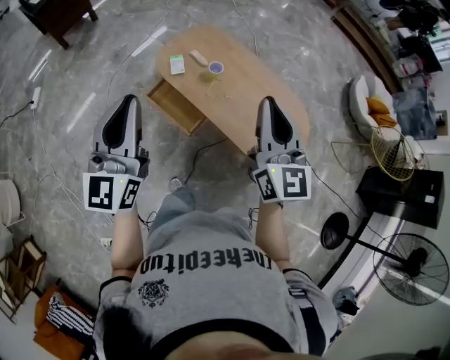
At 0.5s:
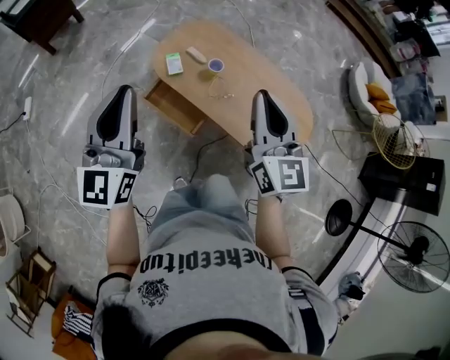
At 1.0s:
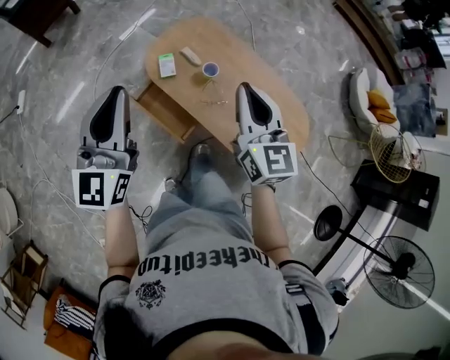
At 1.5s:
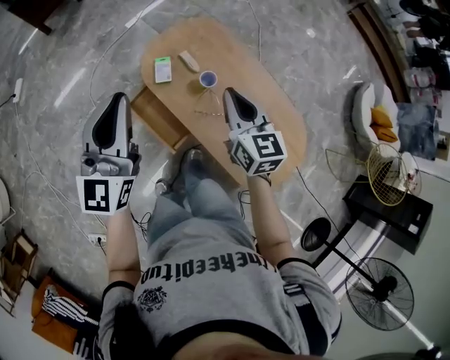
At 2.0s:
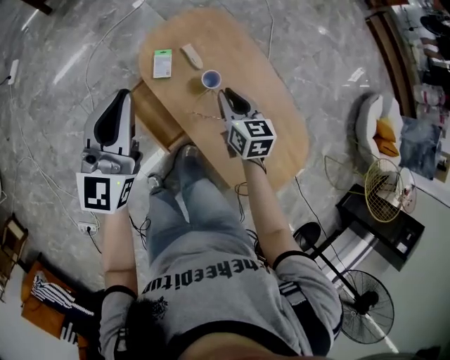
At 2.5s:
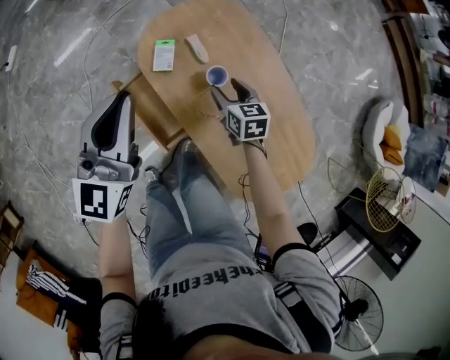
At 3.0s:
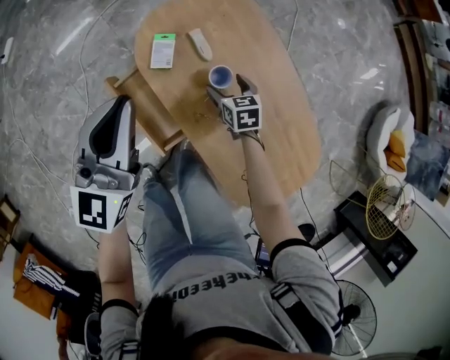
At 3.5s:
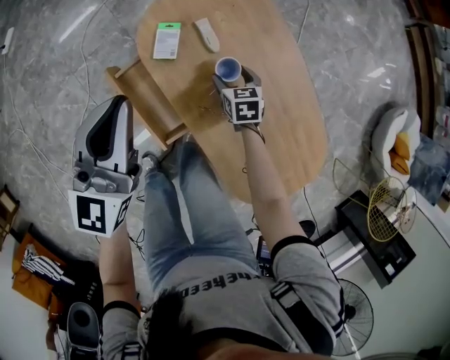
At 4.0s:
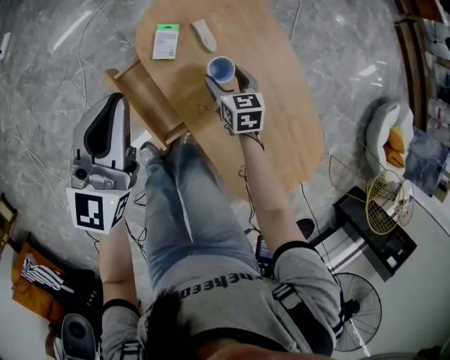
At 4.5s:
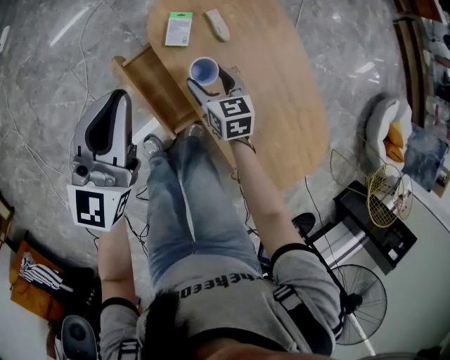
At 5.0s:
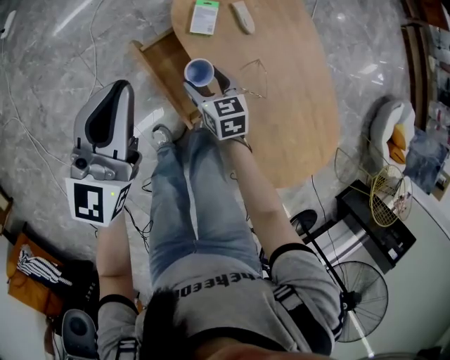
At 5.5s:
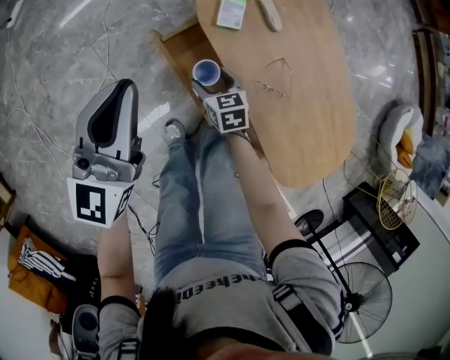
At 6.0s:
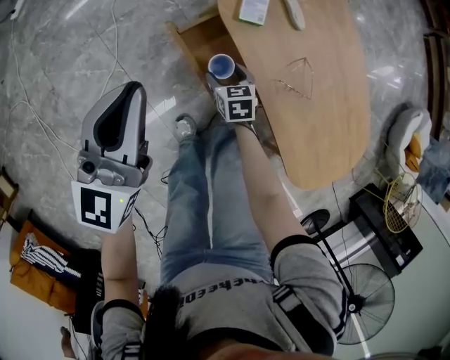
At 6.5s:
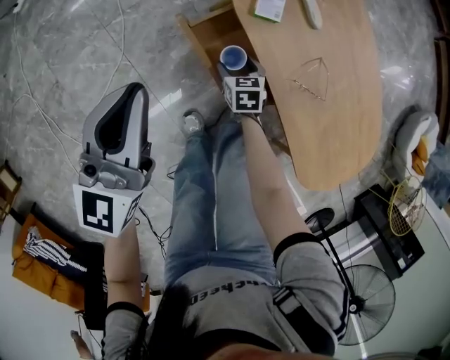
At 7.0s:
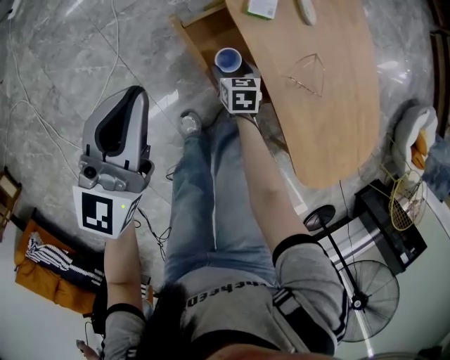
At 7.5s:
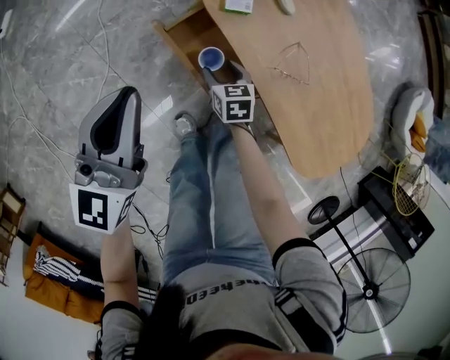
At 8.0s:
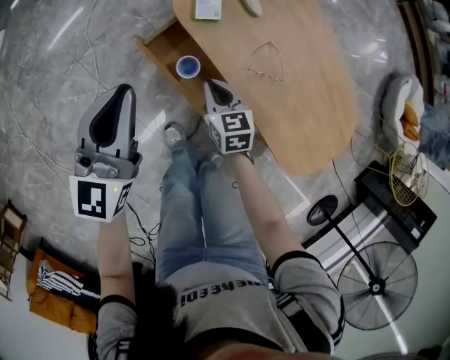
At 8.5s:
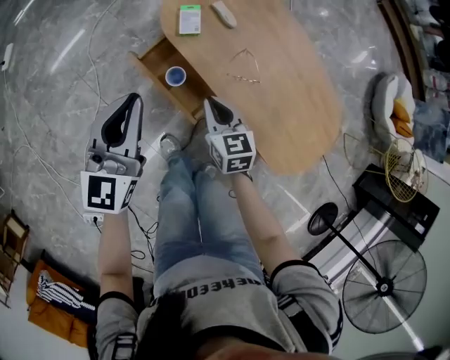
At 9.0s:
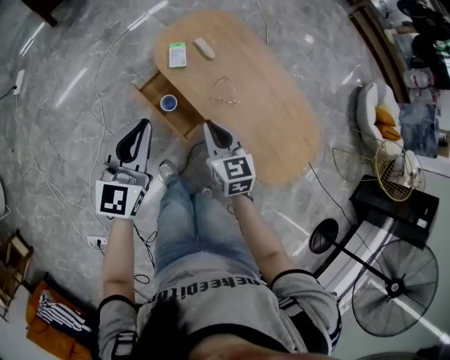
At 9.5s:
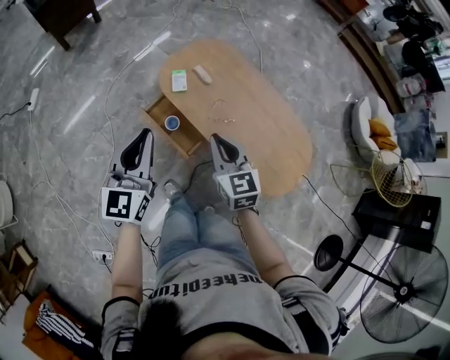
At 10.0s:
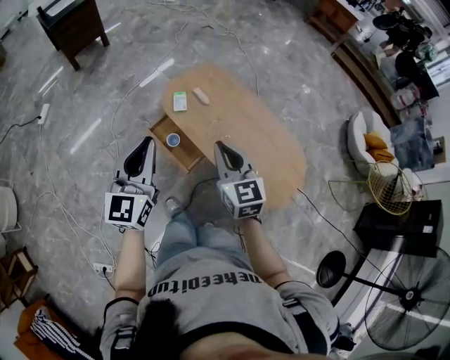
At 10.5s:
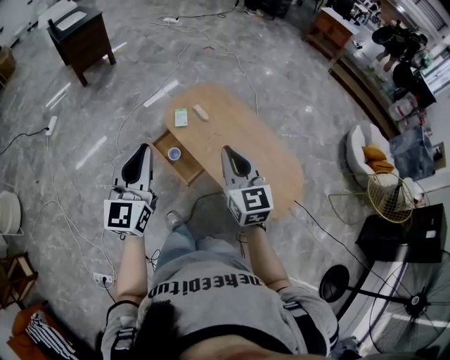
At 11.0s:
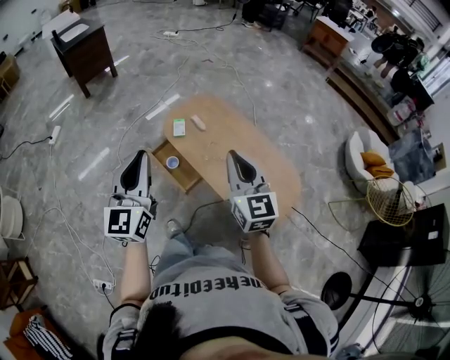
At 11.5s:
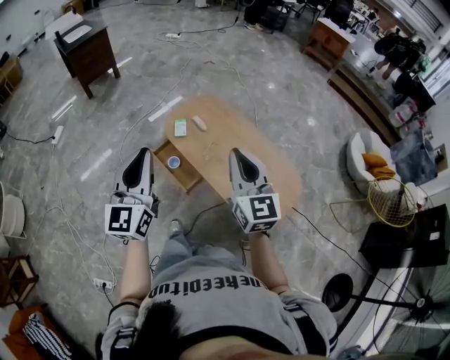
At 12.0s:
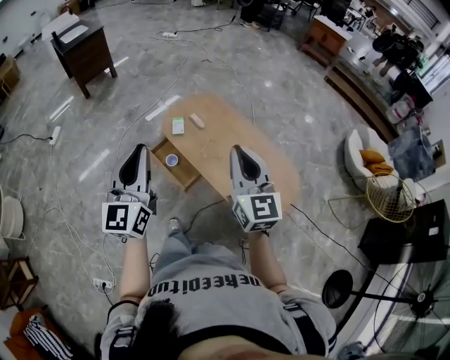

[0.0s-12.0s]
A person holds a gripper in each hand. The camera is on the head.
0.0s to 2.0s: The left gripper travels forward and downward by some 30 cm, while the right gripper goes some 50 cm downward and forward, and tips its fingers downward by some 40 degrees.
2.0s to 4.0s: The left gripper is displaced downward by some 10 cm; the right gripper moves downward, roughly 20 cm, and opens.
4.0s to 6.0s: The grippers both shift to the left and downward by roughly 25 cm.
6.0s to 8.0s: The left gripper ends up roughly 5 cm from where it was, while the right gripper moves upward, about 10 cm, and closes up.
8.0s to 10.0s: The right gripper is displaced upward by about 40 cm, and swivels some 30 degrees; the left gripper heads upward and backward, covering some 30 cm.
10.0s to 12.0s: The left gripper goes roughly 10 cm upward and backward. The right gripper moves upward, backward and to the right, roughly 15 cm.

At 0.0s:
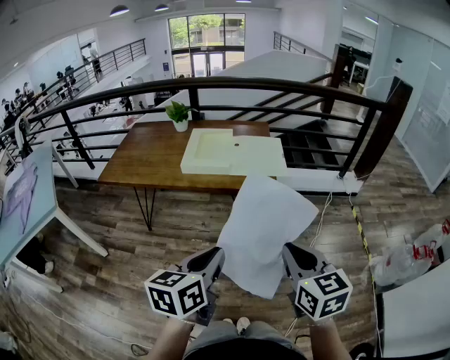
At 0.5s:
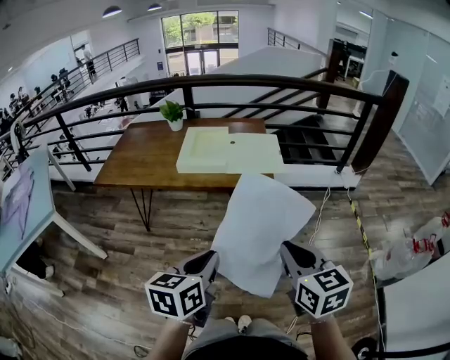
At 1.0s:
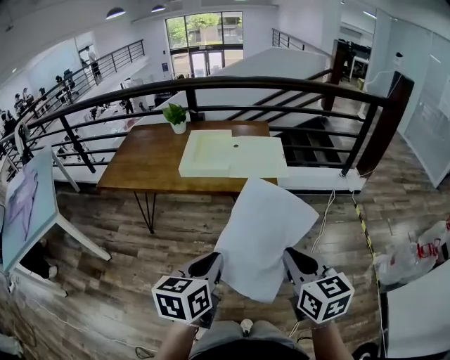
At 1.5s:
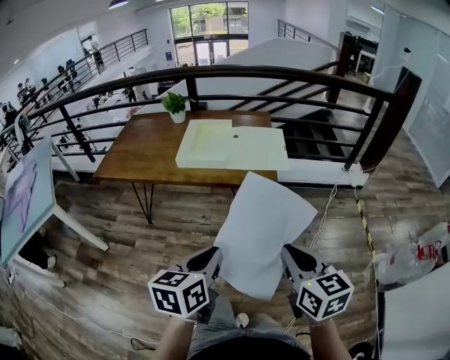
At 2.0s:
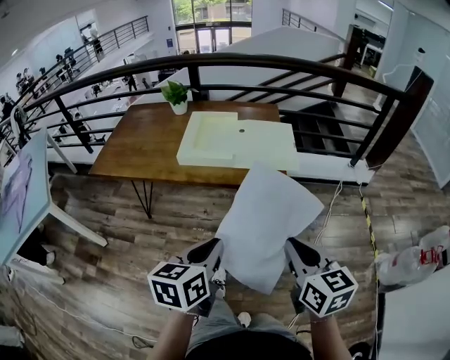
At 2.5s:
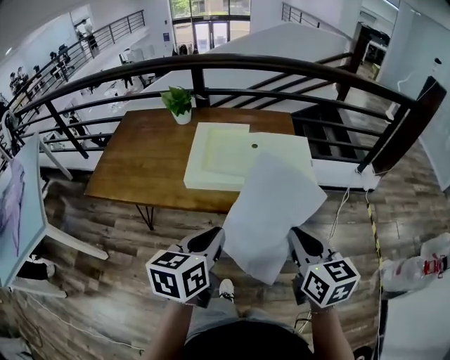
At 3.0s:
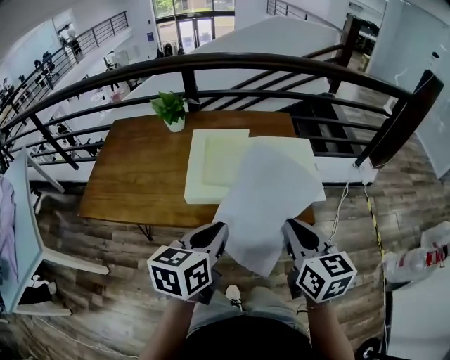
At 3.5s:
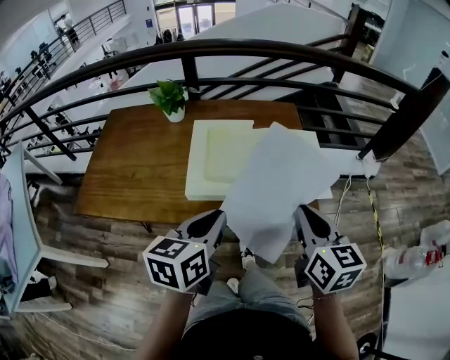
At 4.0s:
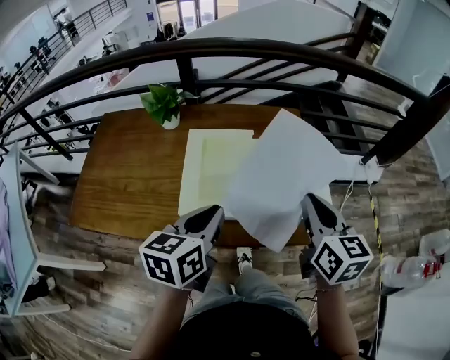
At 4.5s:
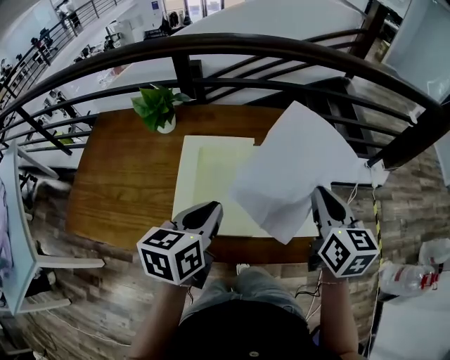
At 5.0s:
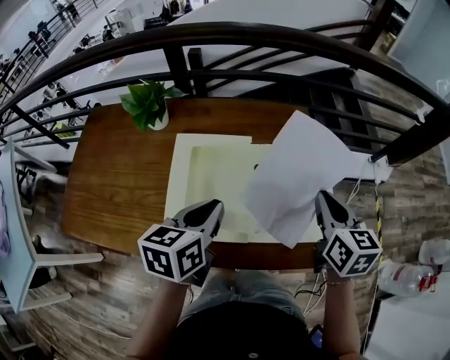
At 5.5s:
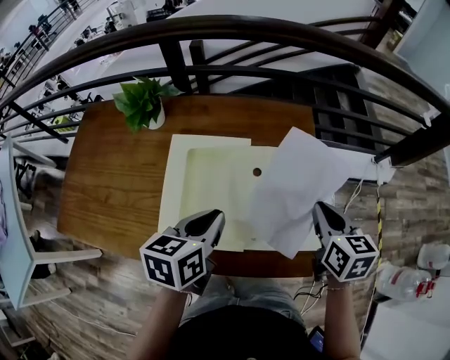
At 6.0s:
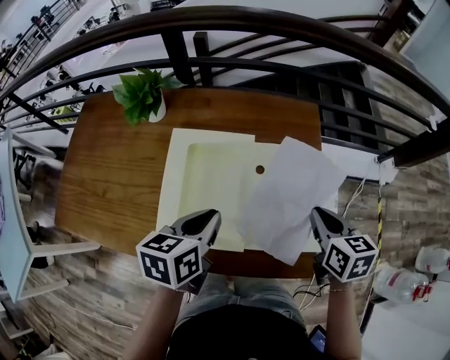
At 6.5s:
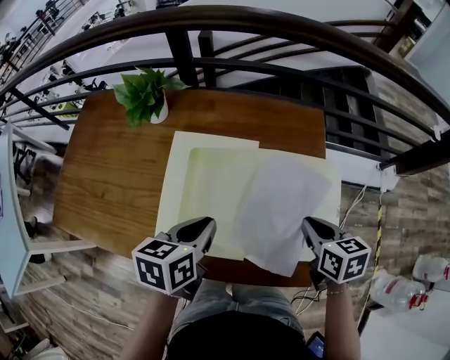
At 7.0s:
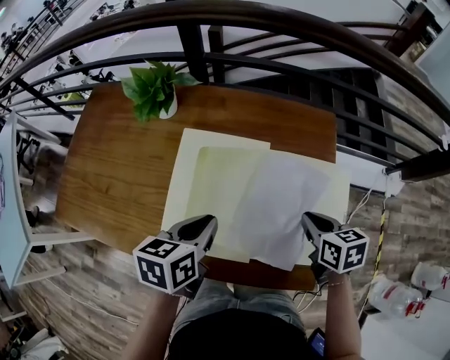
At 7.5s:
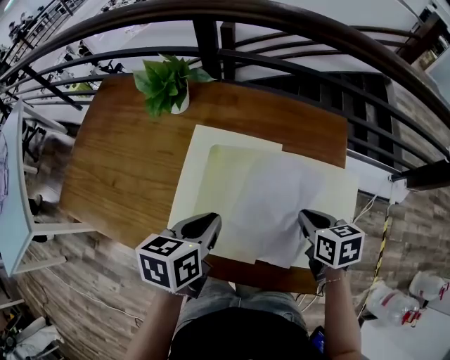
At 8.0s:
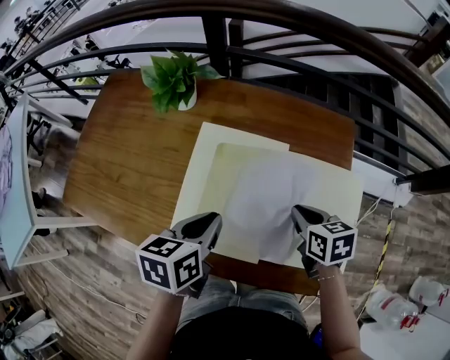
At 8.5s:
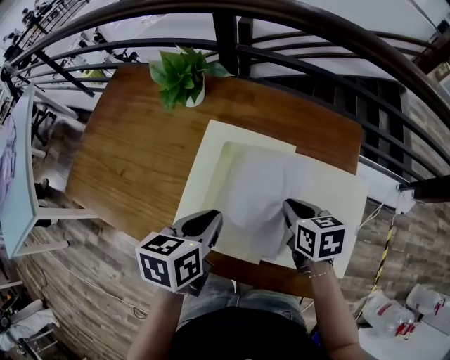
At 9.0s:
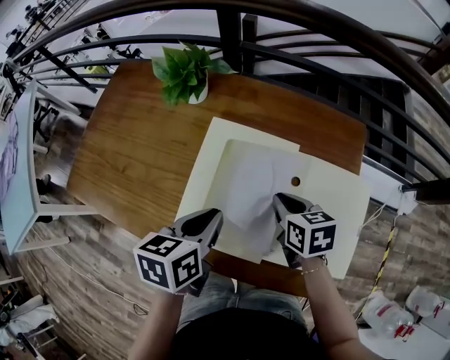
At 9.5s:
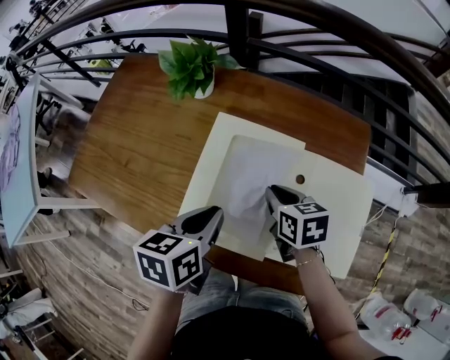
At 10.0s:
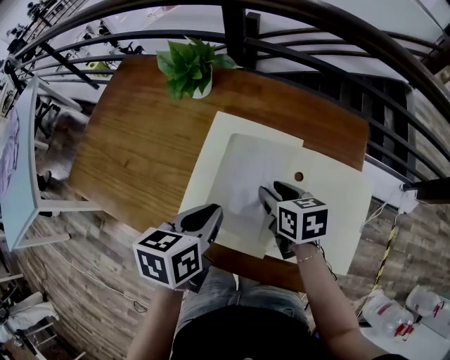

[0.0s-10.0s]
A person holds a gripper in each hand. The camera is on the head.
0.0s to 2.0s: The left gripper goes about 10 cm forward and downward. Meanwhile the right gripper travels forward by approximately 10 cm.
2.0s to 4.0s: The grippers both shift forward by some 35 cm.
4.0s to 6.0s: Both grippers move forward and downward, about 15 cm. The right gripper rotates about 30 degrees.
6.0s to 8.0s: The right gripper shifts some 10 cm to the left and downward.
8.0s to 10.0s: The right gripper is displaced to the left by approximately 10 cm, and opens up.

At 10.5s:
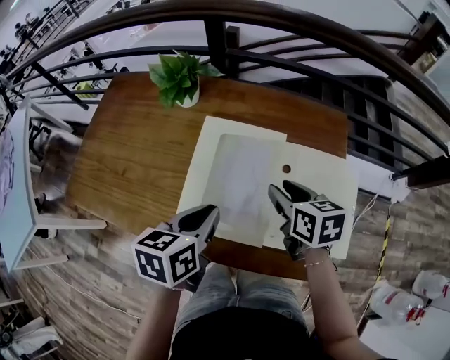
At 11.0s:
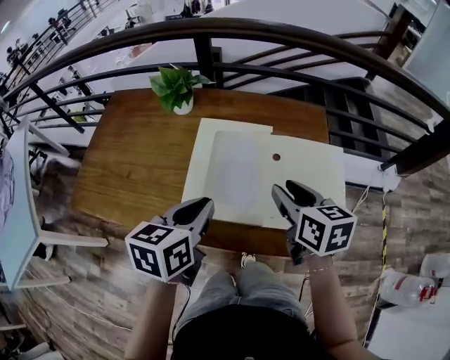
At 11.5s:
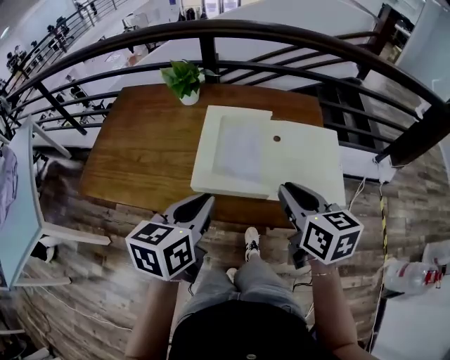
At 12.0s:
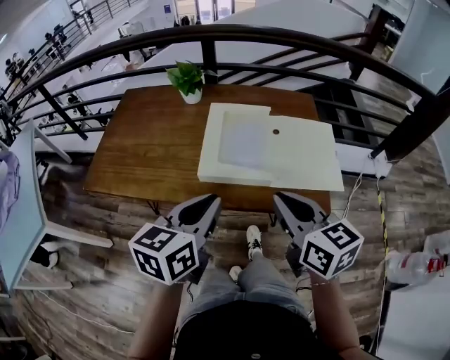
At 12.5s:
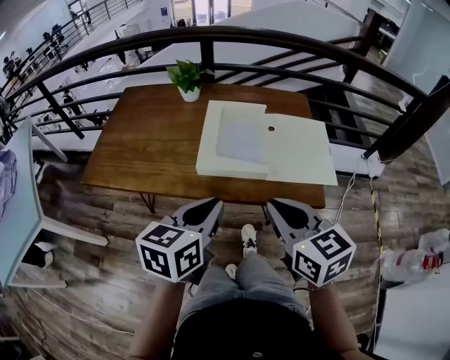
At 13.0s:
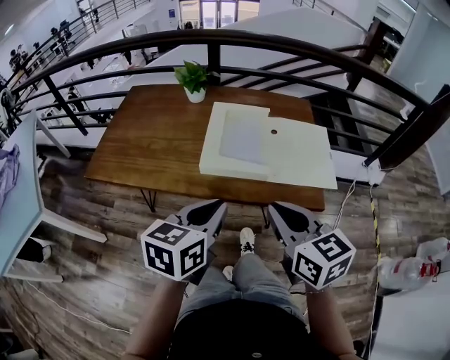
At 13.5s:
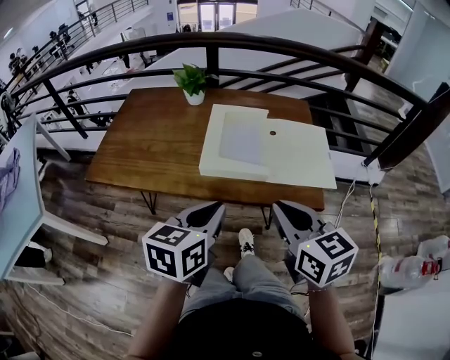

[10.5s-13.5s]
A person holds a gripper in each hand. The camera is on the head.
10.5s to 12.0s: The two grippers go about 25 cm backward and upward. The left gripper changes its angle by some 20 degrees, while the right gripper rotates roughly 20 degrees, and closes its fingers.
12.0s to 13.5s: The two grippers go some 5 cm backward.

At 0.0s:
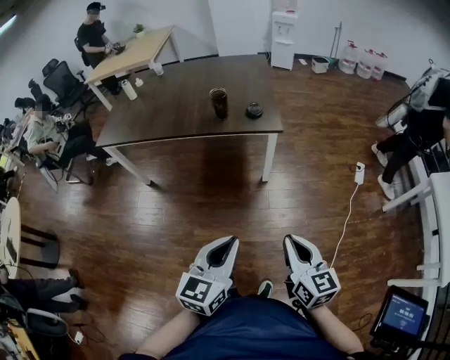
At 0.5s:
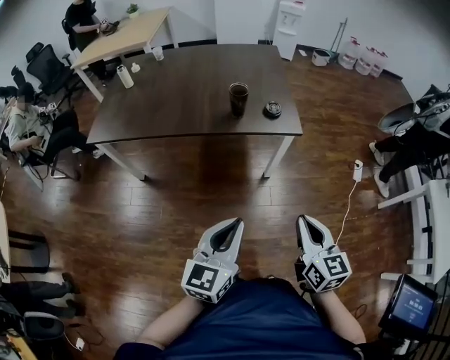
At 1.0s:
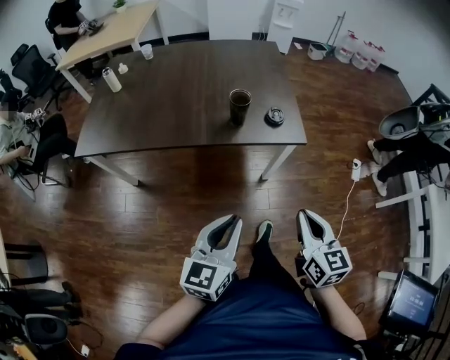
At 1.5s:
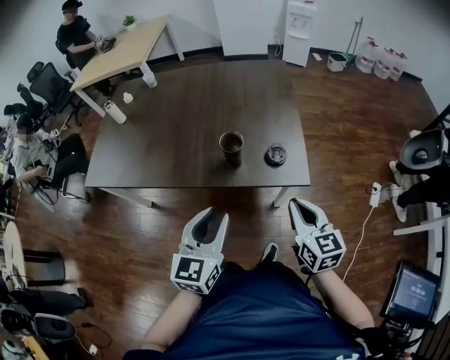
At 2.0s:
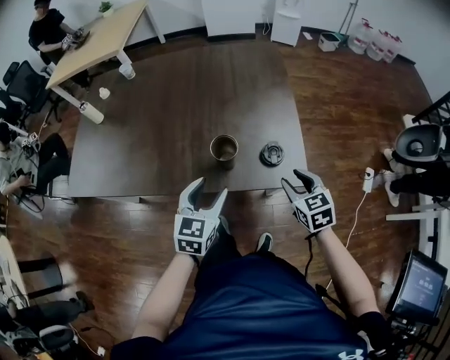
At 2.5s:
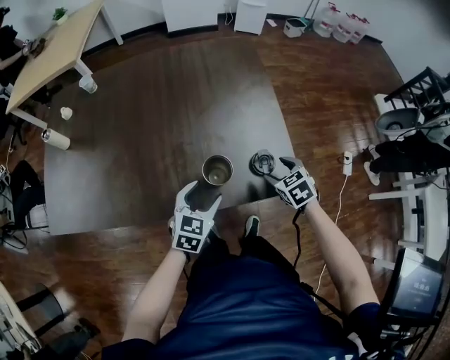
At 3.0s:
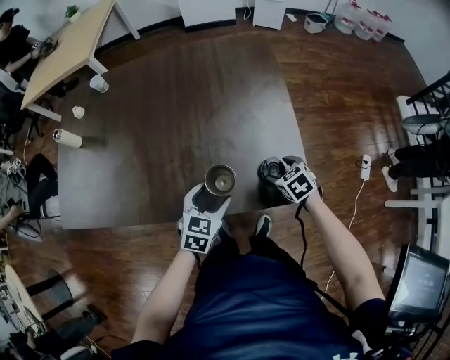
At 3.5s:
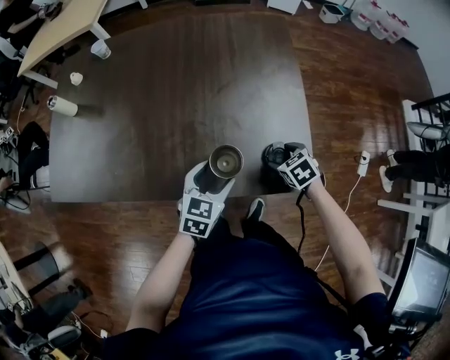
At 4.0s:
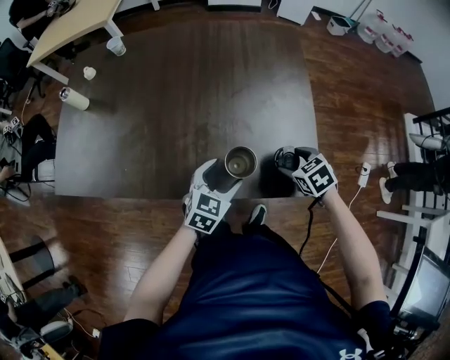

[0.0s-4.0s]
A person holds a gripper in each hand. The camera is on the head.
0.0s to 2.0s: The two grippers travel together, forward, some 50 cm. The right gripper turns by some 30 degrees, and opens up. The left gripper opens up.
2.0s to 4.0s: The right gripper is displaced forward and downward by roughly 15 cm, swivels about 30 degrees, and opens, while the left gripper is displaced downward and forward by some 15 cm.
